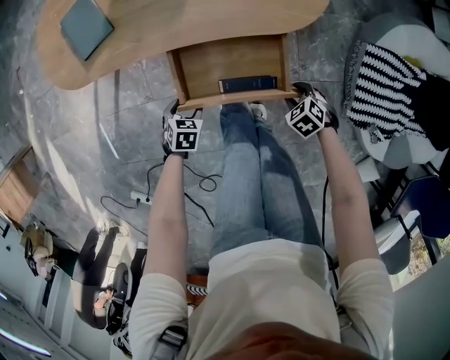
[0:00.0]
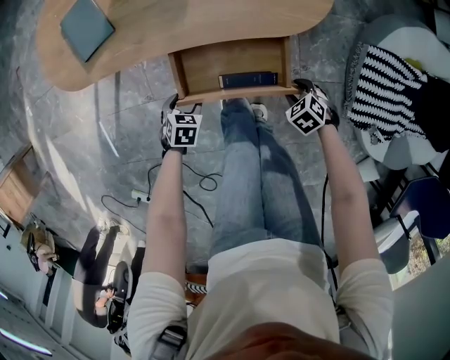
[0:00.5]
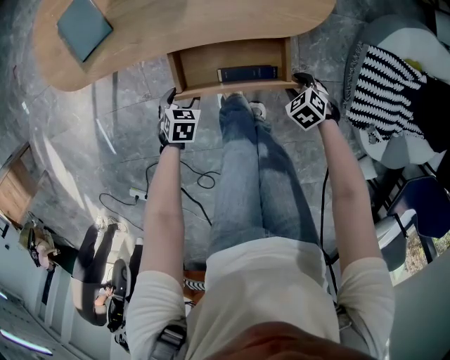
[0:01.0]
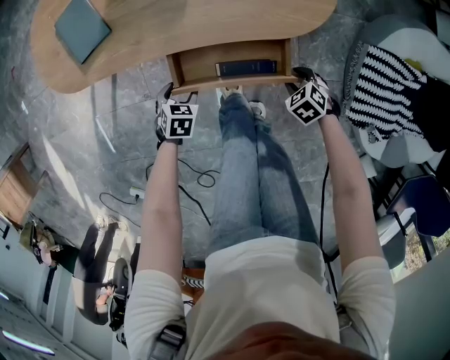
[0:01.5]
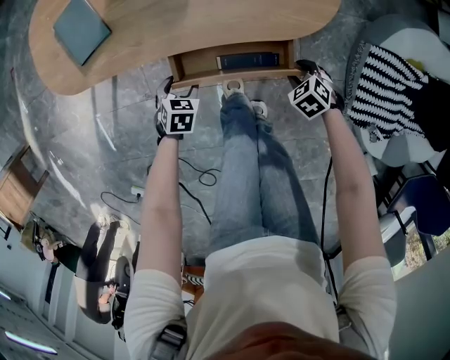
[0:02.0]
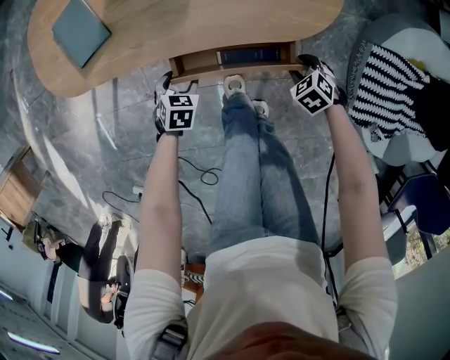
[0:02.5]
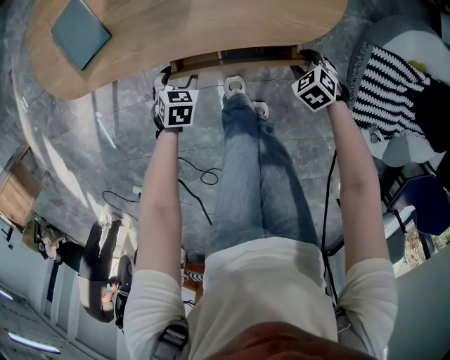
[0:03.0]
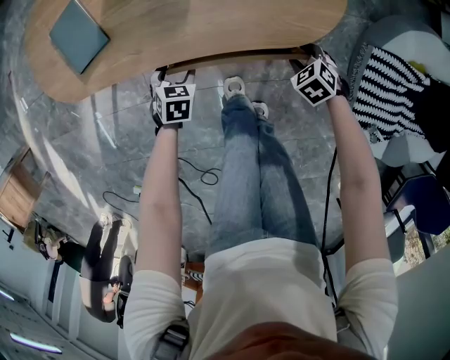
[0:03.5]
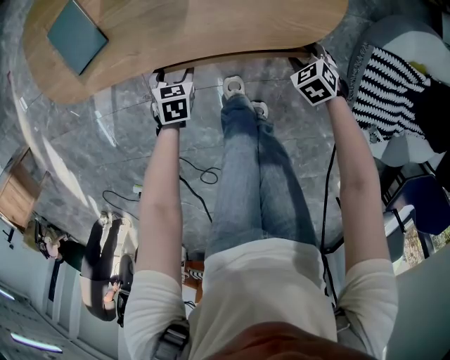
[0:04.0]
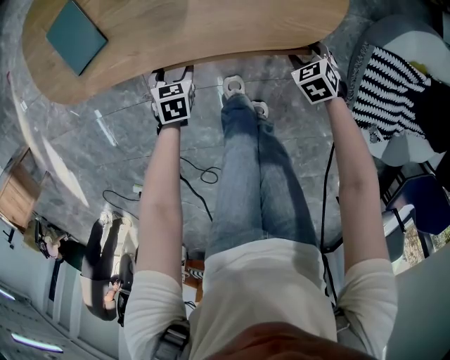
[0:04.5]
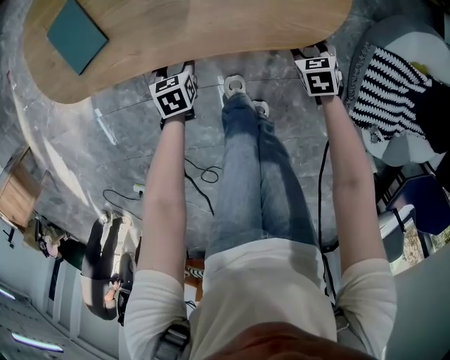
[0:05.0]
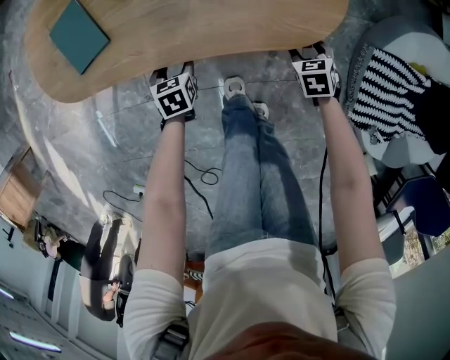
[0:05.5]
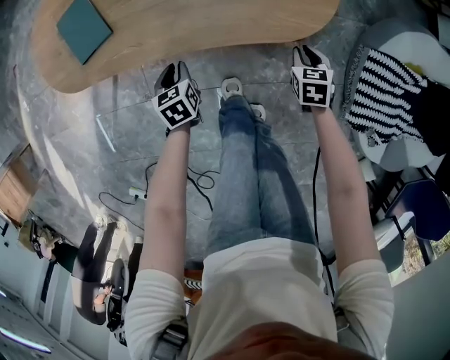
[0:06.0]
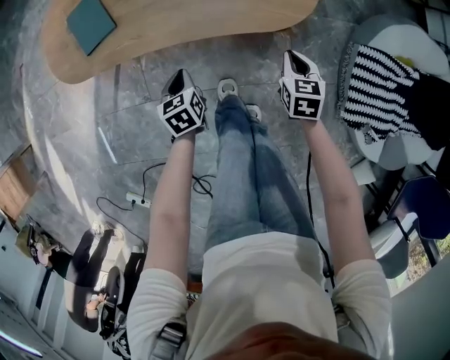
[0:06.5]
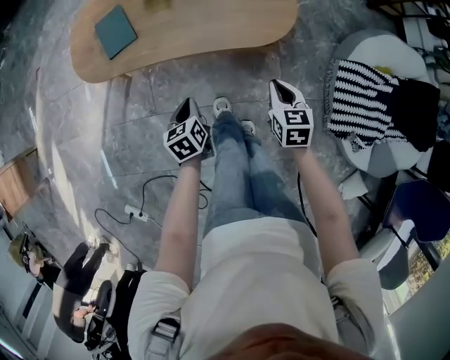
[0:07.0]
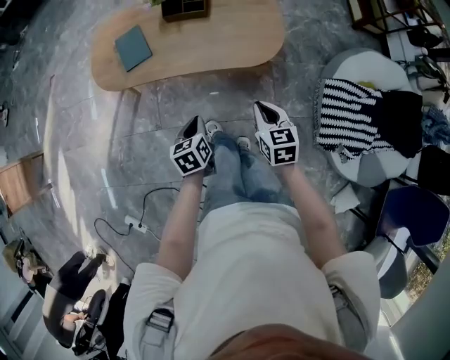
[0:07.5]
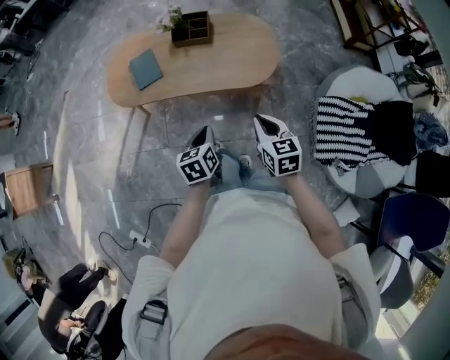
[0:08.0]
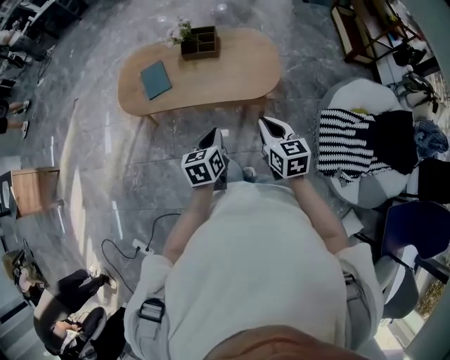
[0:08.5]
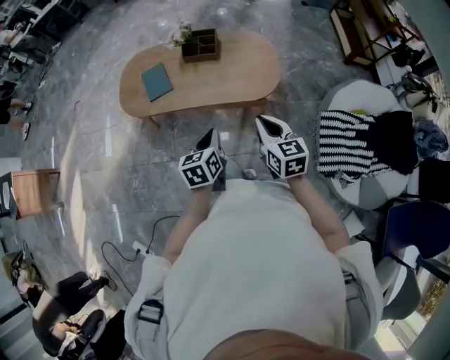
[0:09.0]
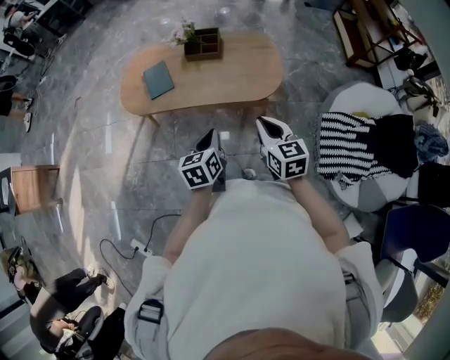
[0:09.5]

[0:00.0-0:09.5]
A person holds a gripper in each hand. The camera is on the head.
0:00.0 to 0:02.0: The left gripper moves roughly 10 cm; the right gripper ends up about 10 cm from where it was.
0:02.0 to 0:04.0: The left gripper shifts by approximately 10 cm; the right gripper changes place by approximately 10 cm.
0:04.0 to 0:05.5: The right gripper turns by about 30 degrees.
0:05.5 to 0:07.5: The two grippers go some 40 cm upward and backward. The right gripper tips its fingers upward by approximately 30 degrees, and closes up; the left gripper swivels approximately 20 degrees, and closes.
0:07.5 to 0:09.5: The grippers both shift upward by some 15 cm.

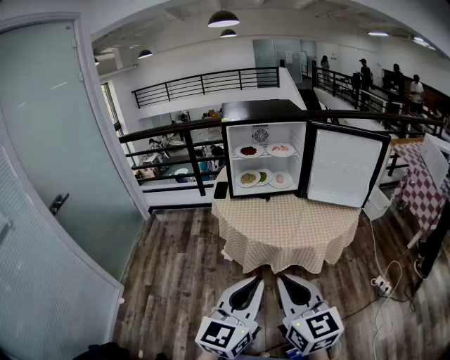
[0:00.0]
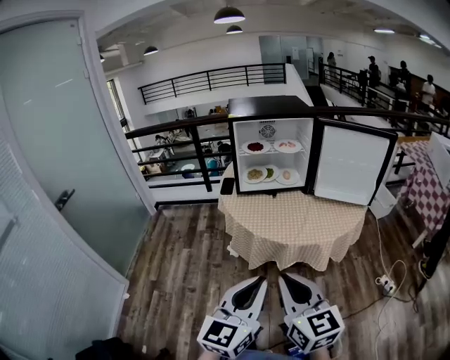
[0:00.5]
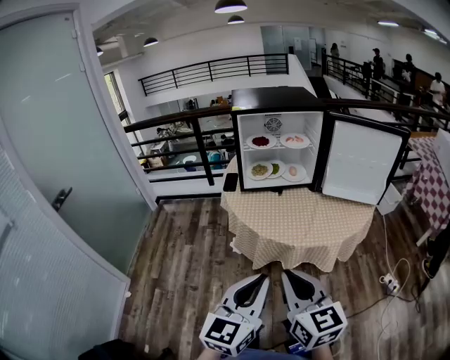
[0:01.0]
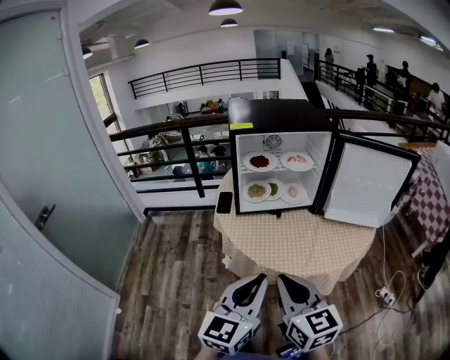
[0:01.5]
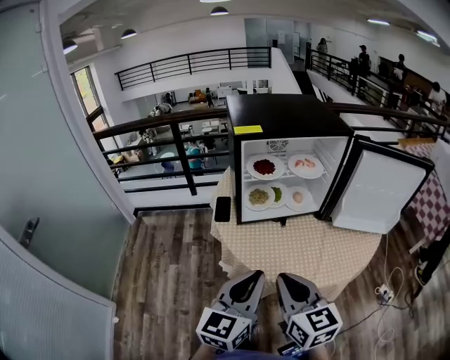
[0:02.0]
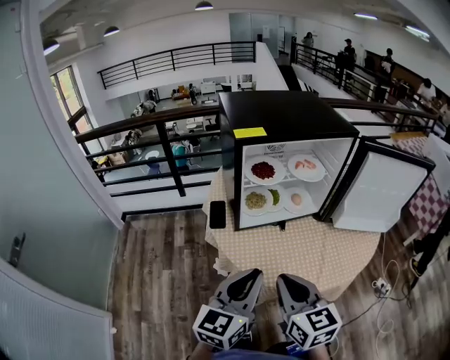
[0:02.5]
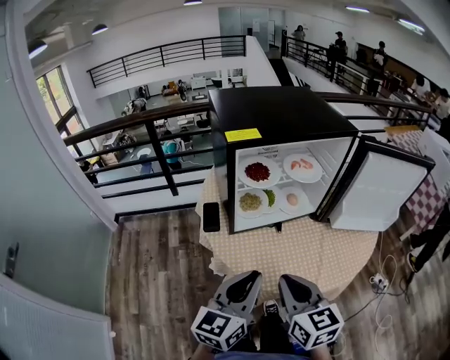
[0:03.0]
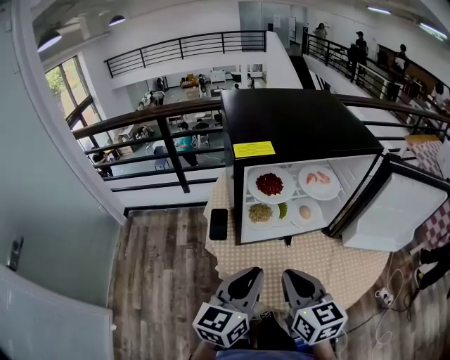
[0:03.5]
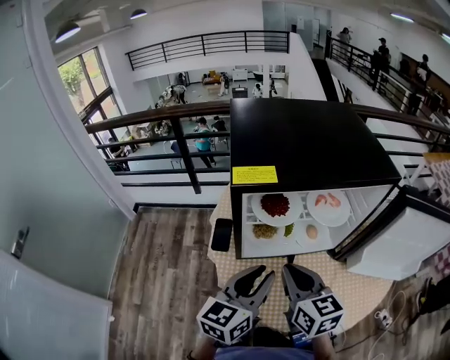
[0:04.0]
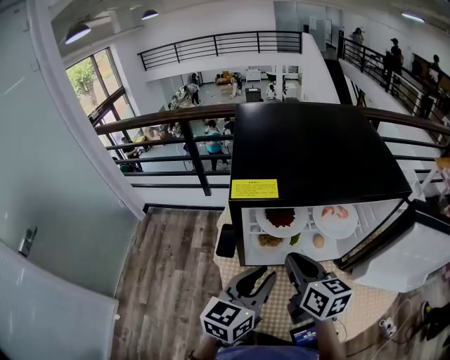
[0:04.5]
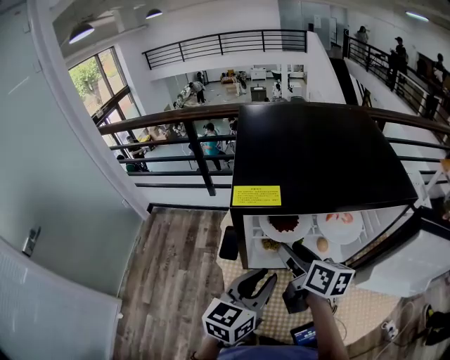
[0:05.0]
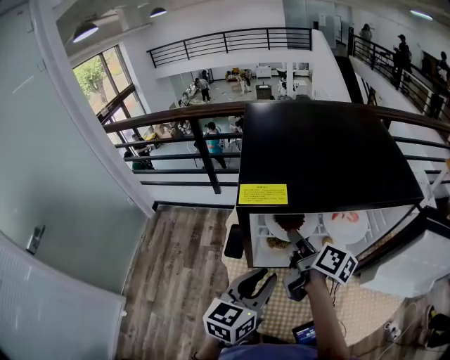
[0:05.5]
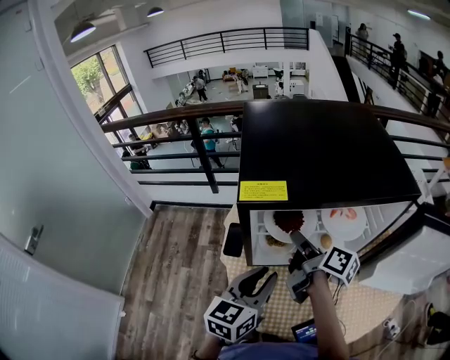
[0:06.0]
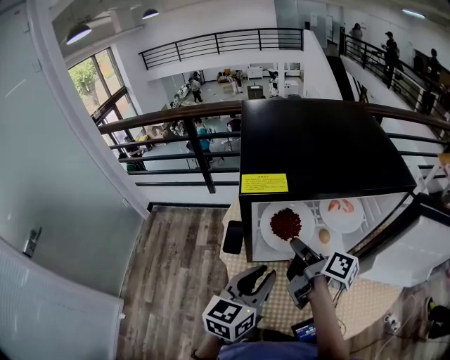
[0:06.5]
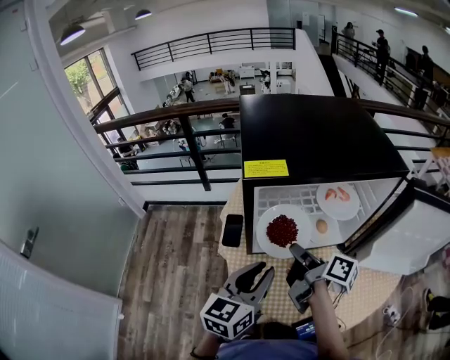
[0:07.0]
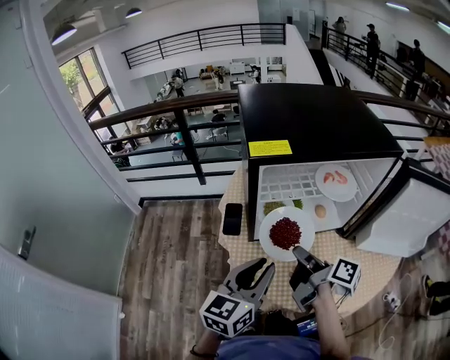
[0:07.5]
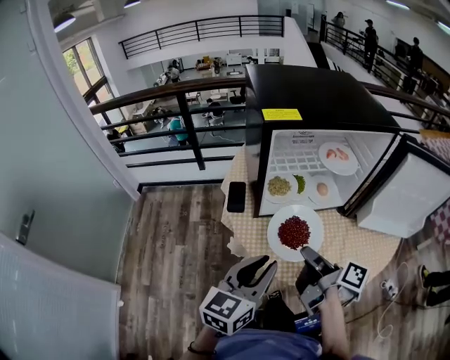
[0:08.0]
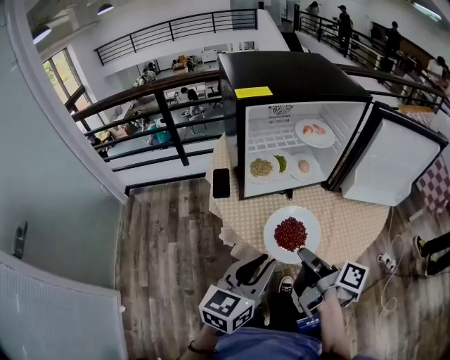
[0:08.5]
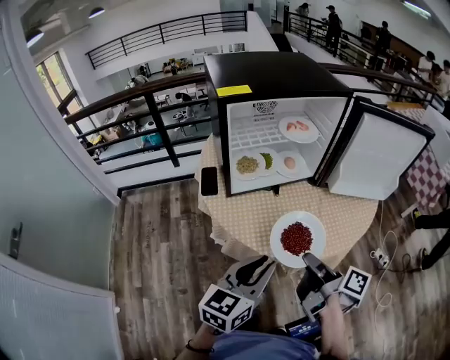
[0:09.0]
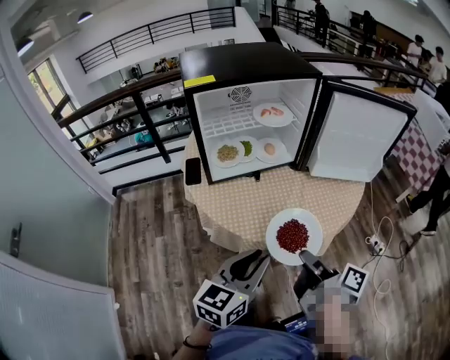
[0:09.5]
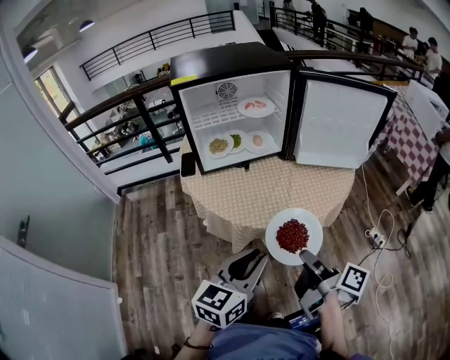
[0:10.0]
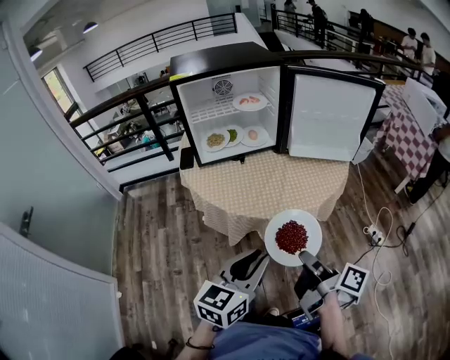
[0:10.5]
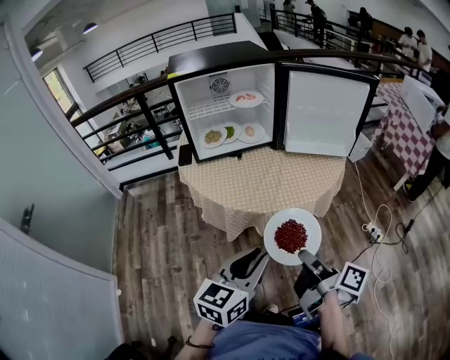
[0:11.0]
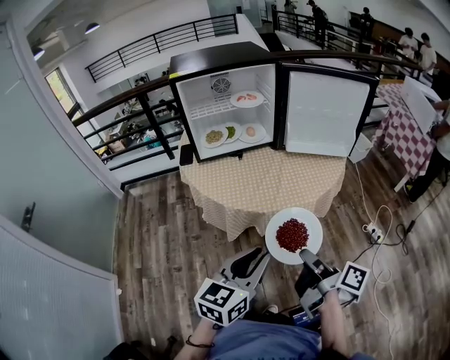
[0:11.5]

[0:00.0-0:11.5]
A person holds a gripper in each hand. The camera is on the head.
0:00.0 to 0:02.0: The two grippers go about 30 cm forward.
0:02.0 to 0:04.0: The two grippers go approximately 25 cm forward.
0:04.0 to 0:06.0: The right gripper travels forward by roughly 15 cm, twists approximately 60 degrees clockwise, seen from behind, and opens up.
0:06.0 to 0:07.5: The right gripper travels backward by roughly 15 cm, and closes, while the left gripper travels backward by approximately 10 cm.
0:07.5 to 0:09.5: The grippers both shift backward and to the right by some 25 cm.
0:09.5 to 0:11.5: The two grippers go some 20 cm backward and to the right.

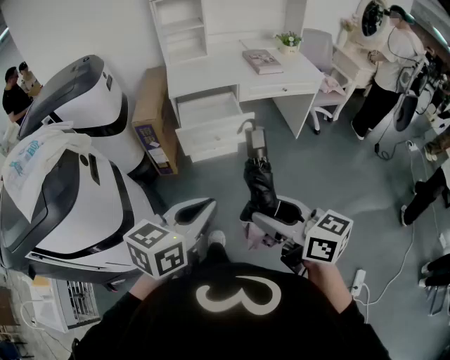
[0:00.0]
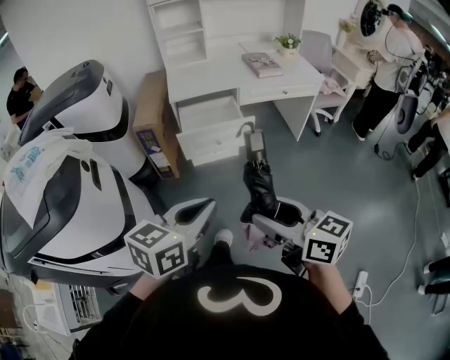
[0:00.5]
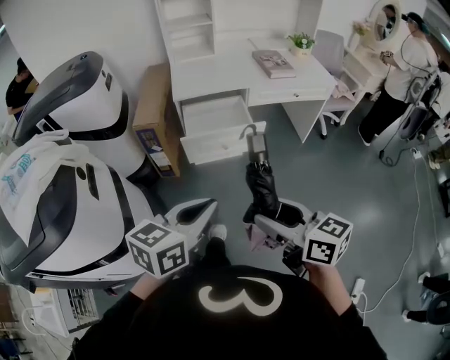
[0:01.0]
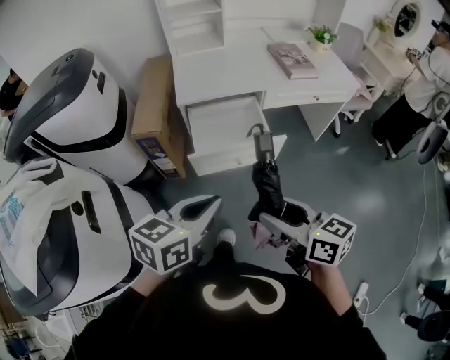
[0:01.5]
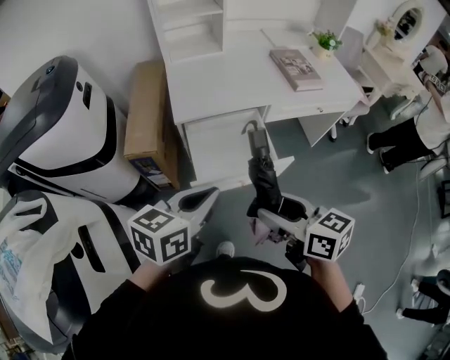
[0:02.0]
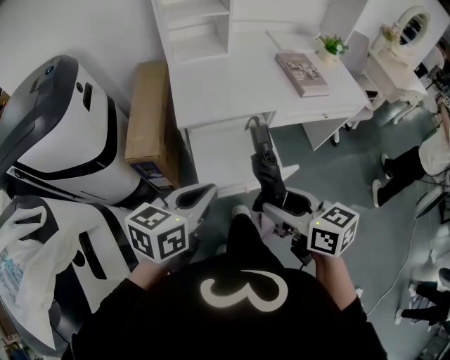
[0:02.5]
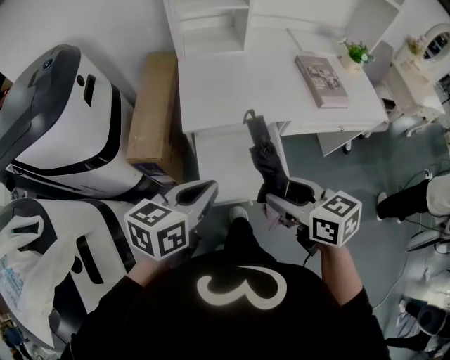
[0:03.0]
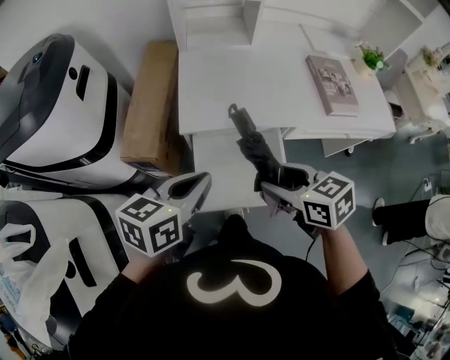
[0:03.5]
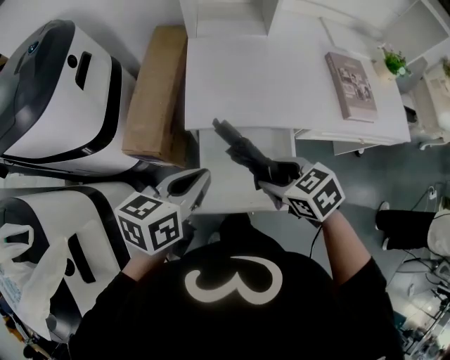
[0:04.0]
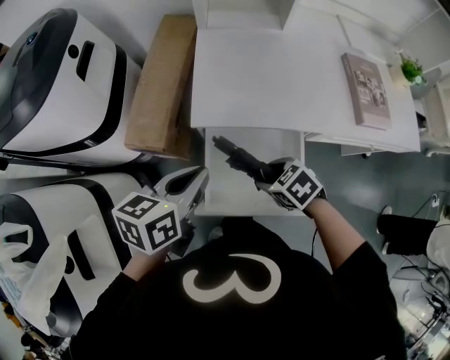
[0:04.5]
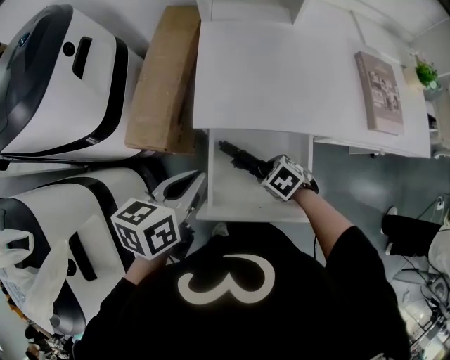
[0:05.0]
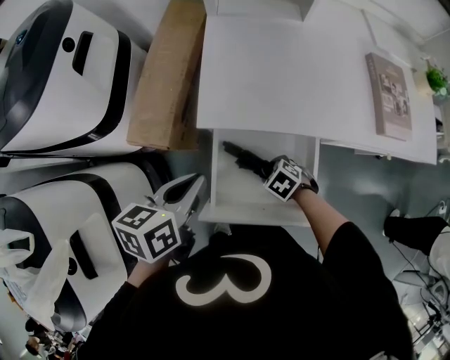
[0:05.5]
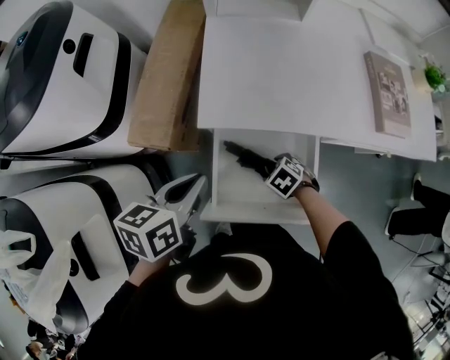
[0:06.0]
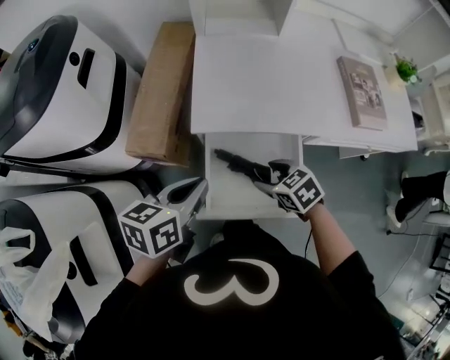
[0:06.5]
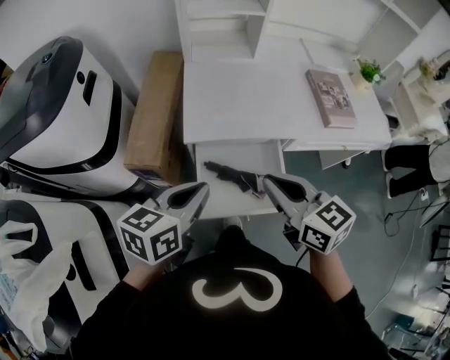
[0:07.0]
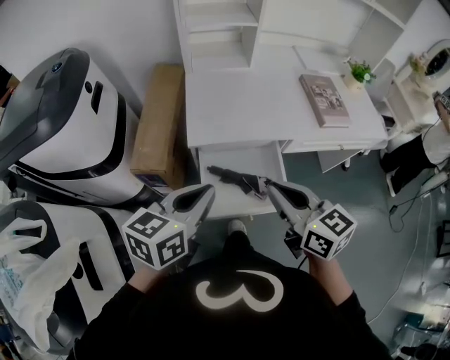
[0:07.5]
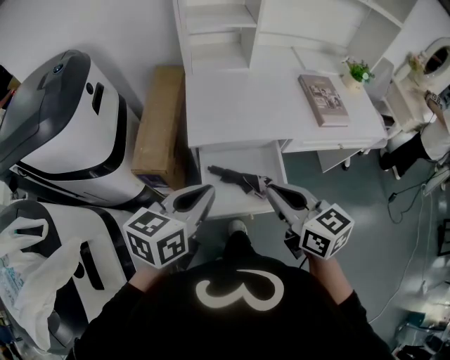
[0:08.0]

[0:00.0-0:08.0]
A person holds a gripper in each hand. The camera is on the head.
0:00.0 to 0:02.0: Both grippers move forward, roughly 40 cm.
0:02.0 to 0:04.0: The right gripper heads forward and downward, covering some 30 cm, and tilts its fingers roughly 30 degrees downward. Meanwhile the left gripper travels forward by some 20 cm.
0:04.0 to 0:06.0: The right gripper travels downward by some 25 cm, and swivels some 30 degrees. Meanwhile the left gripper heads downward, covering some 5 cm.
0:06.0 to 0:08.0: The left gripper travels upward by approximately 15 cm, and swivels roughly 30 degrees; the right gripper is displaced upward by approximately 40 cm, points its fingers approximately 60 degrees further upward, and closes its fingers.
